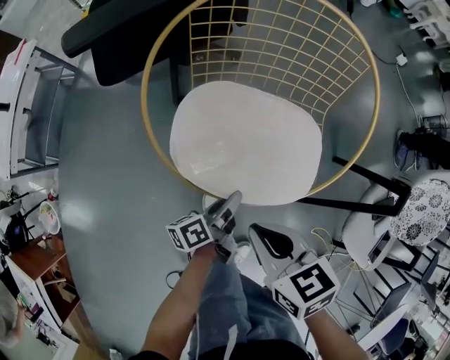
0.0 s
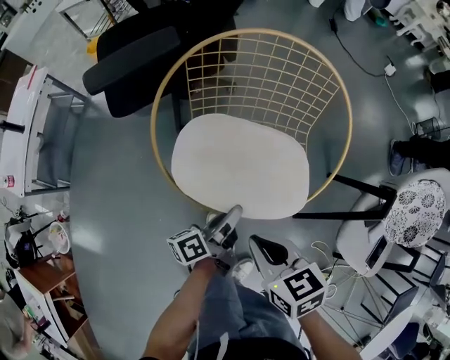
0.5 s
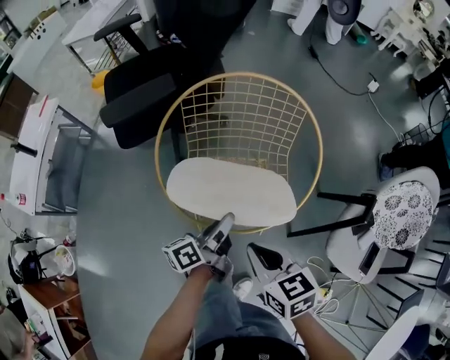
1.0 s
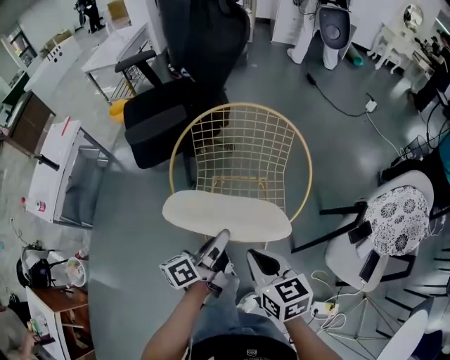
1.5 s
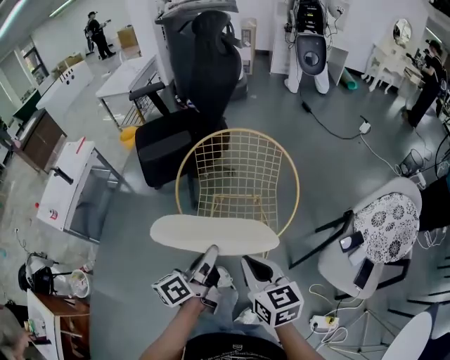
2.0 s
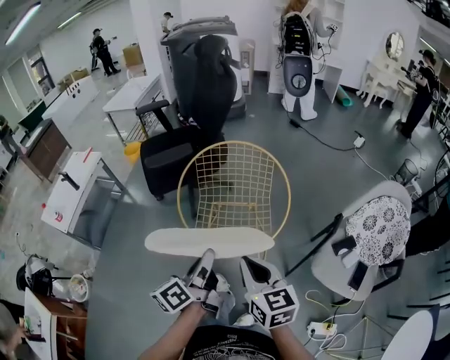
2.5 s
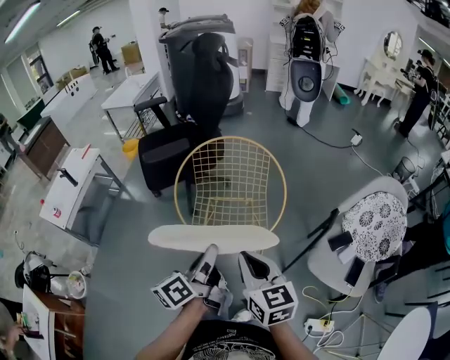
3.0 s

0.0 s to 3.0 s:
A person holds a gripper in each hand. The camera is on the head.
0.0 to 1.5 s: The right gripper moves upward, roughly 10 cm; the left gripper goes about 25 cm upward.
1.5 to 3.0 s: The grippers both shift upward and backward by approximately 15 cm.

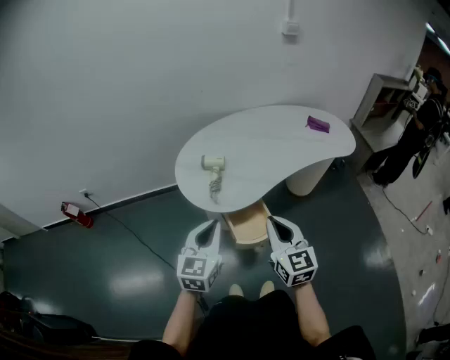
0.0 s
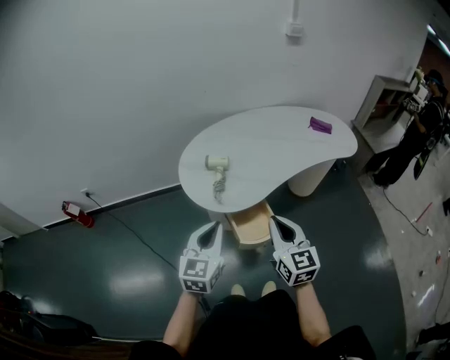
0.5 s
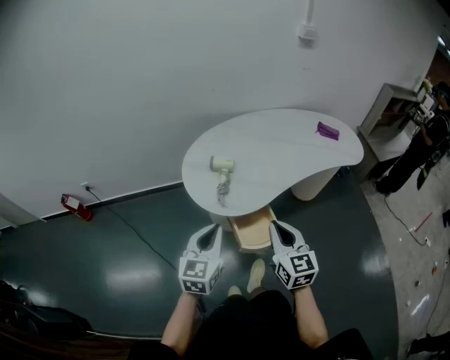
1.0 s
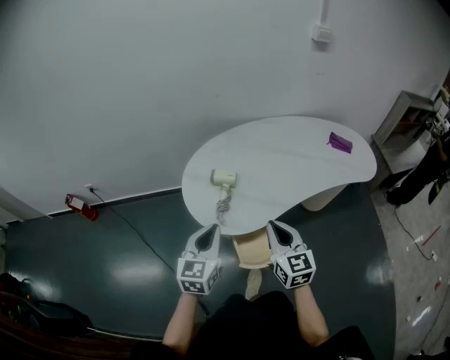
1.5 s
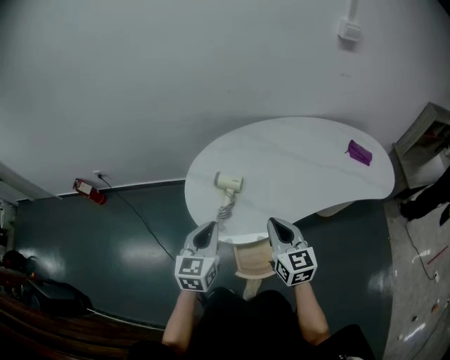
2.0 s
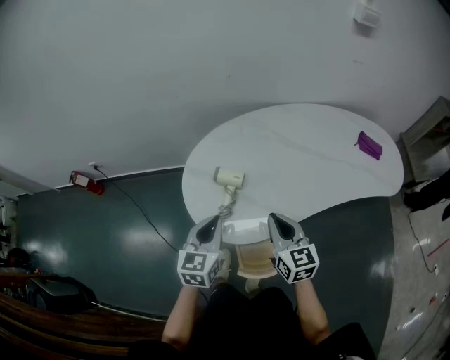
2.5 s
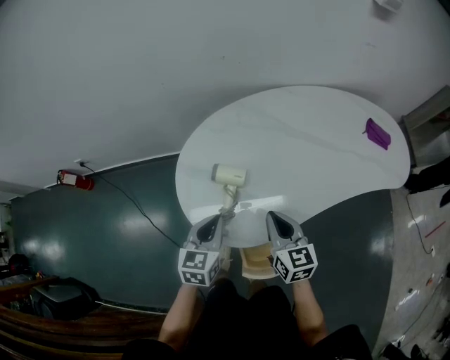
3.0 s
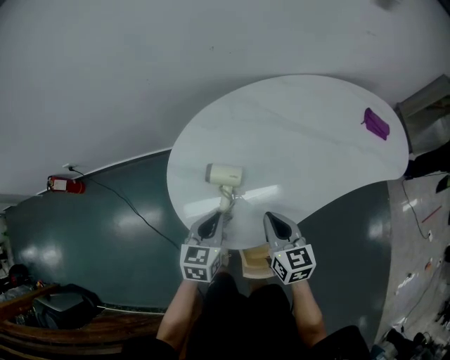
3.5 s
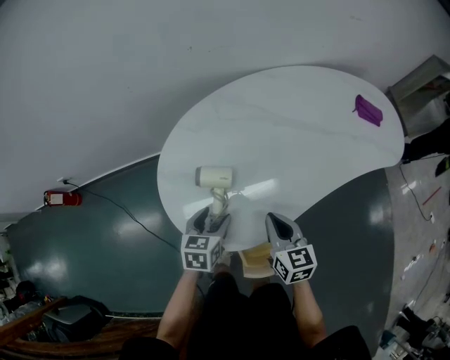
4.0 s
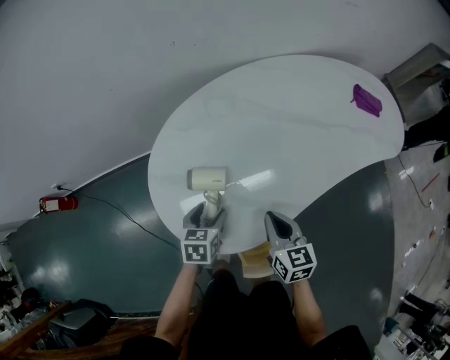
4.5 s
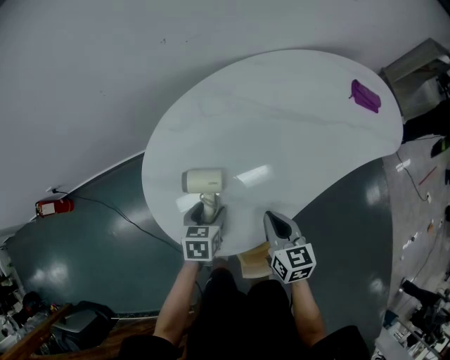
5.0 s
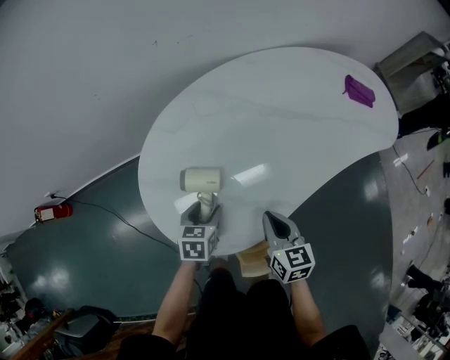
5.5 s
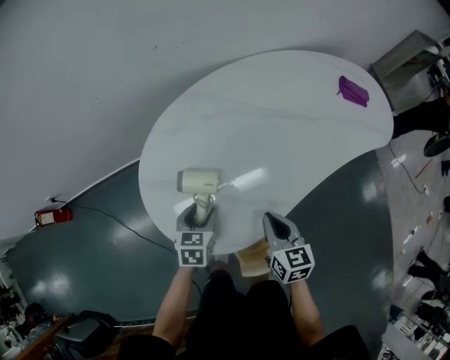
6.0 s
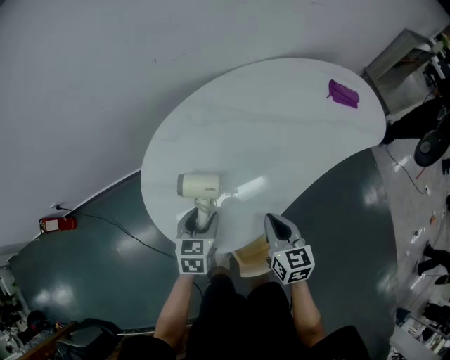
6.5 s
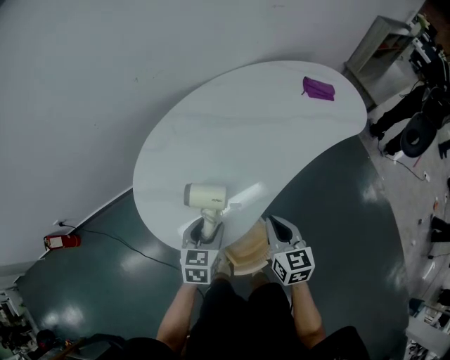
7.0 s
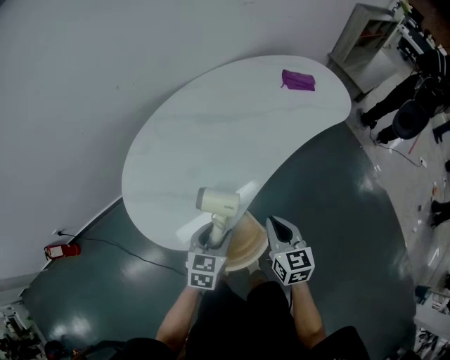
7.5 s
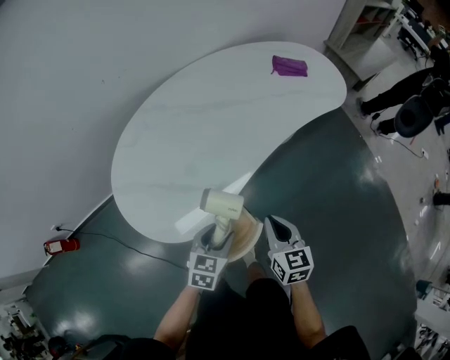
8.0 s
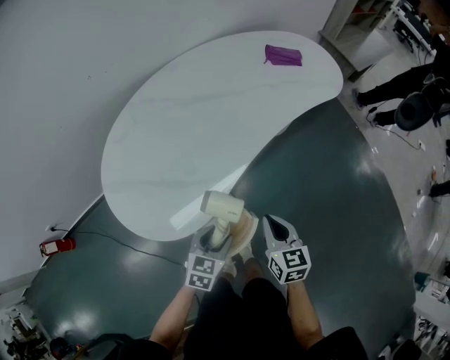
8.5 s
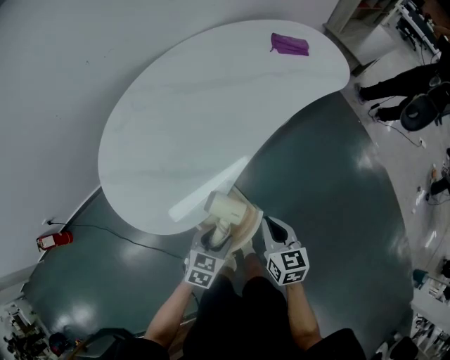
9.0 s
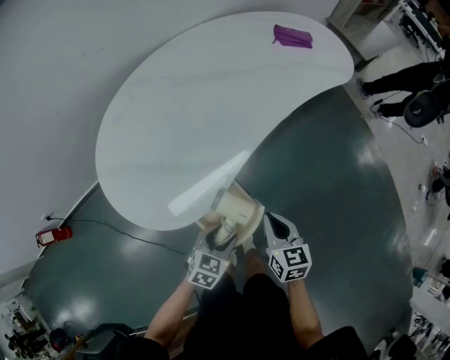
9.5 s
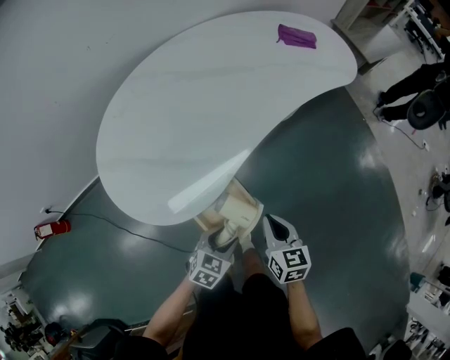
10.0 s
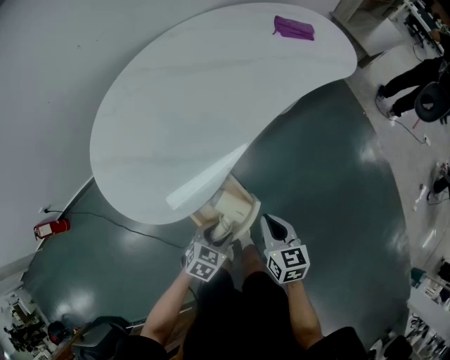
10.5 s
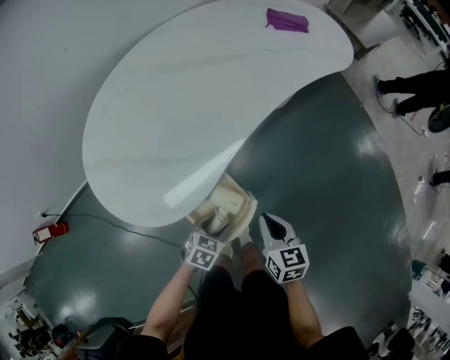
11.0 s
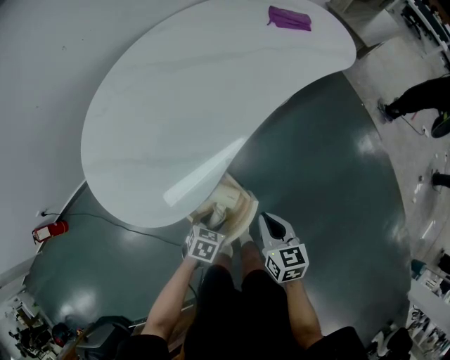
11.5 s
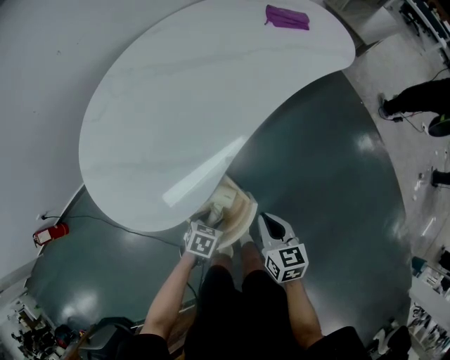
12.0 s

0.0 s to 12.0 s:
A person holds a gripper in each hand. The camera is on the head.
0.0 to 2.0 s: Both grippers move forward, roughly 20 cm.
2.0 to 4.0 s: The two grippers go roughly 20 cm downward and forward. The right gripper changes its angle by about 20 degrees, while the left gripper changes its angle by about 30 degrees, and opens.
4.0 to 6.0 s: The left gripper changes place by some 5 cm.
6.0 to 8.0 s: The two grippers go some 25 cm to the right and backward. The left gripper turns by approximately 20 degrees.
8.0 to 10.0 s: The two grippers go approximately 10 cm downward and backward.
10.0 to 12.0 s: The left gripper moves downward, approximately 10 cm, and changes its angle by about 20 degrees.

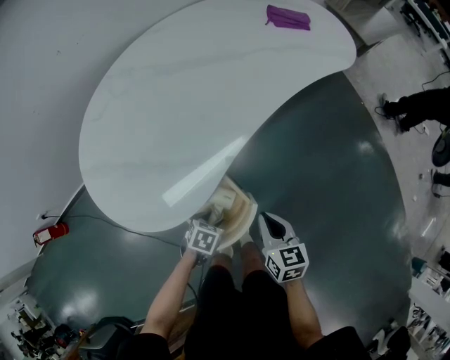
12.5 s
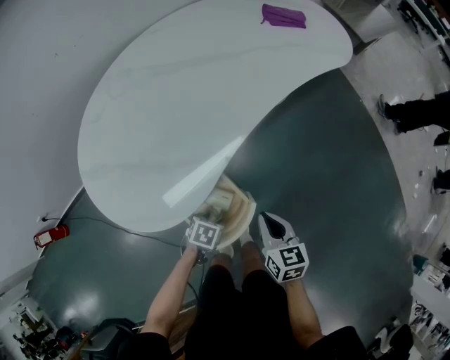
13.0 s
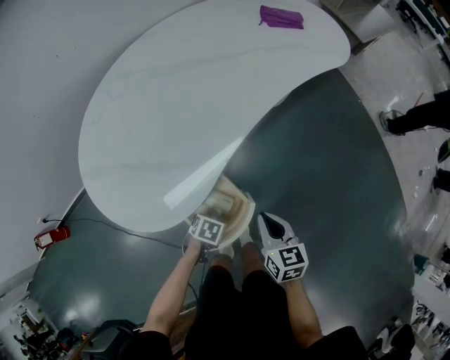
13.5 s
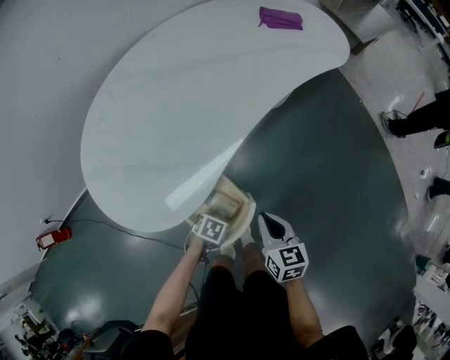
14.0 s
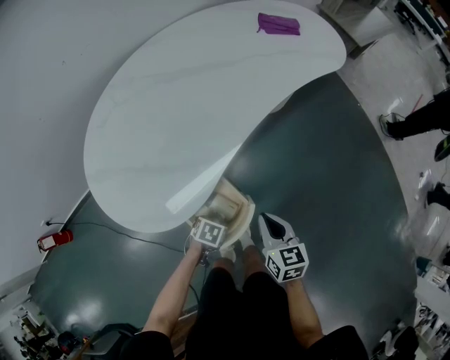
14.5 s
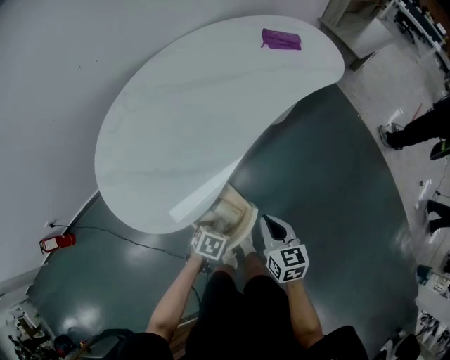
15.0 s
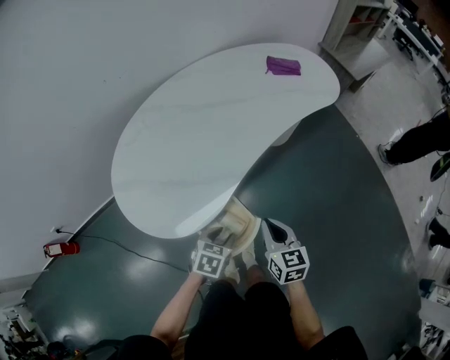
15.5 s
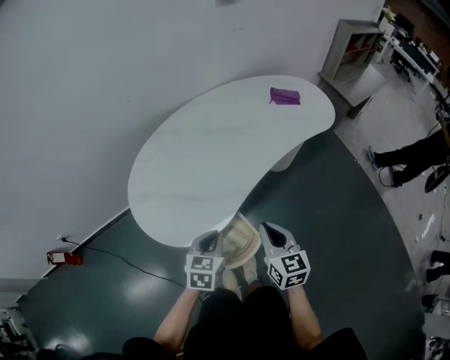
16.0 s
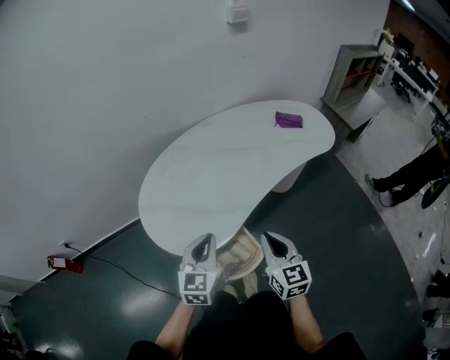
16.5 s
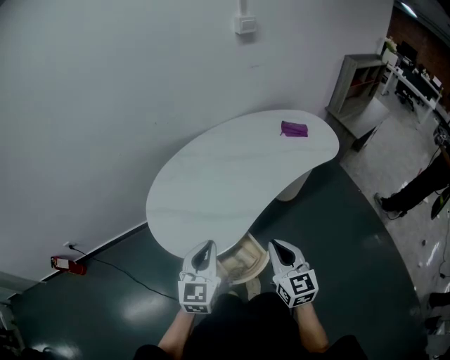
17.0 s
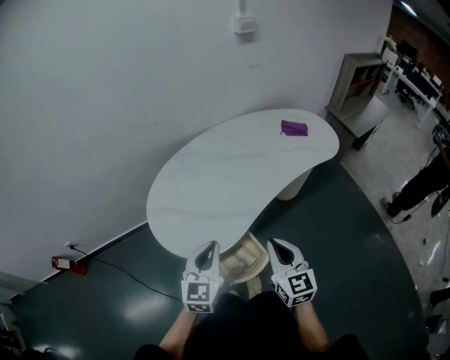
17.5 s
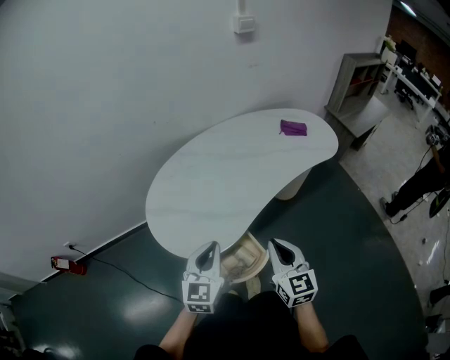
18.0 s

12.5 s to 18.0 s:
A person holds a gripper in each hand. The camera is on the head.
12.5 to 14.5 s: The grippers stay close to where they were, moving slightly.
14.5 to 16.0 s: The right gripper is displaced upward by some 20 cm. Meanwhile the left gripper travels upward by about 30 cm, angles its fingers upward, by approximately 30 degrees, and closes.
16.0 to 18.0 s: The right gripper is displaced upward by about 10 cm, while the left gripper is displaced upward by roughly 15 cm, and swivels roughly 30 degrees.

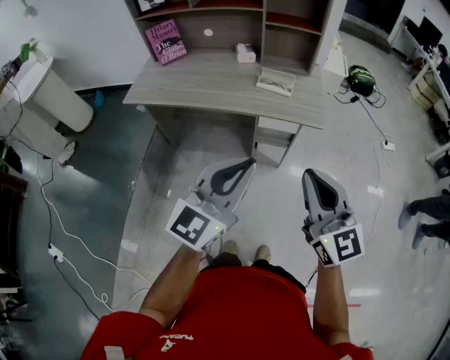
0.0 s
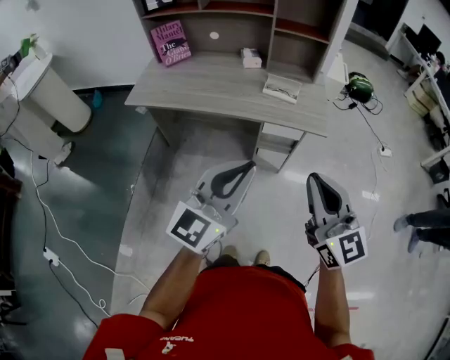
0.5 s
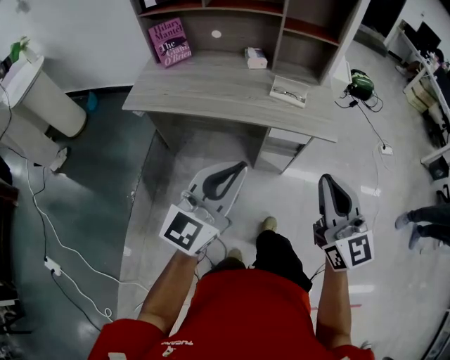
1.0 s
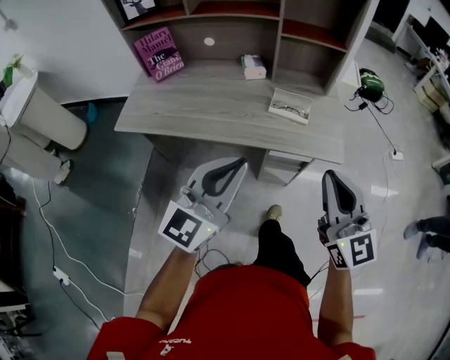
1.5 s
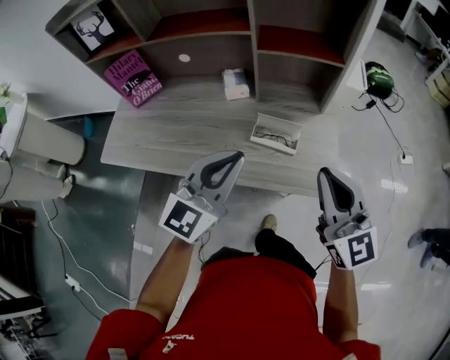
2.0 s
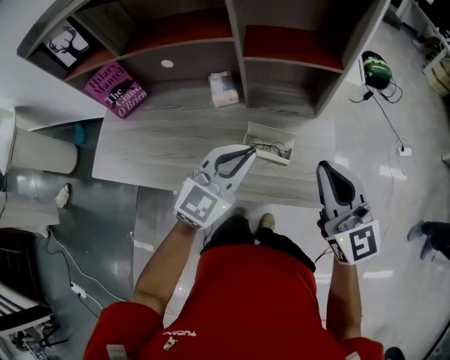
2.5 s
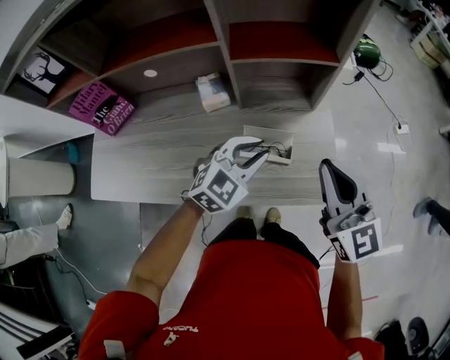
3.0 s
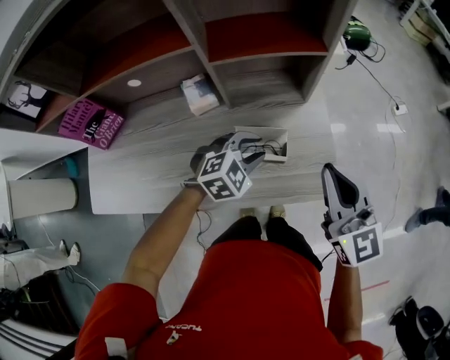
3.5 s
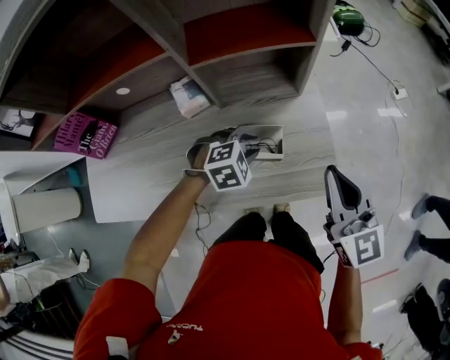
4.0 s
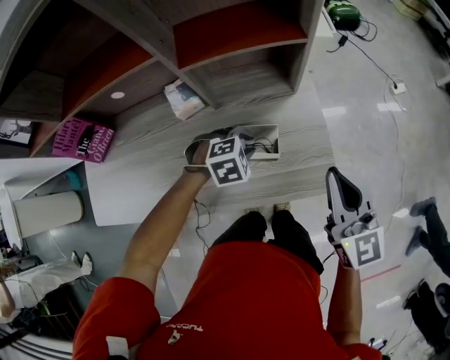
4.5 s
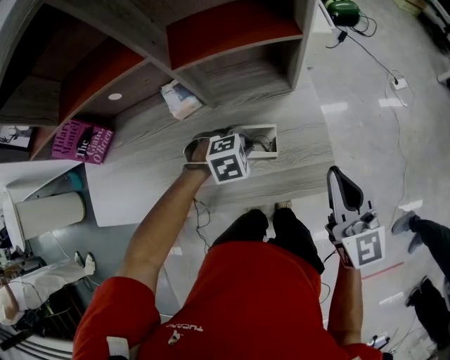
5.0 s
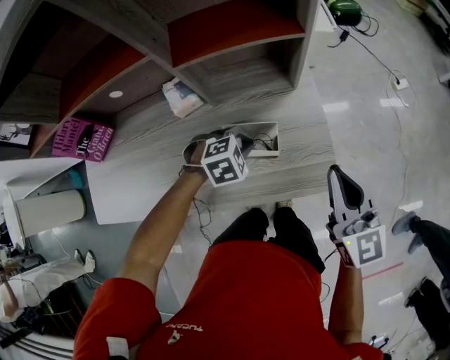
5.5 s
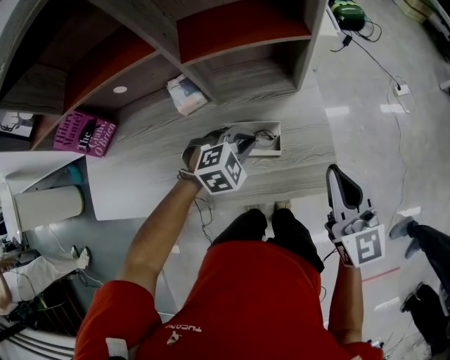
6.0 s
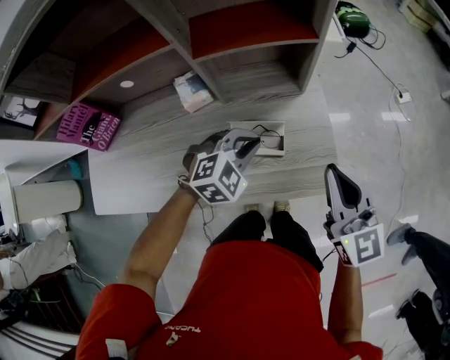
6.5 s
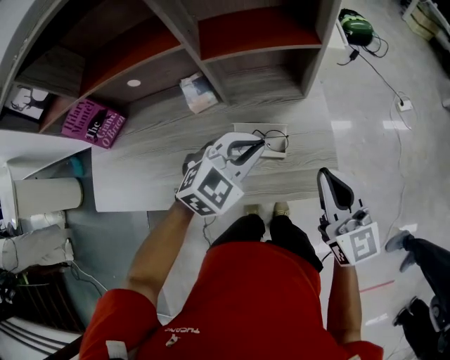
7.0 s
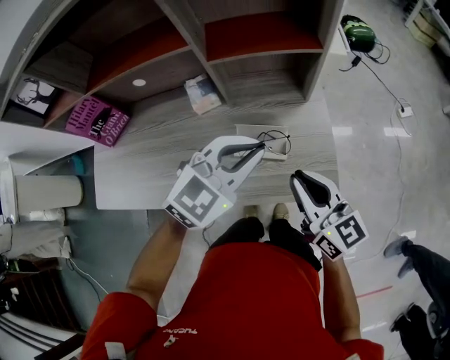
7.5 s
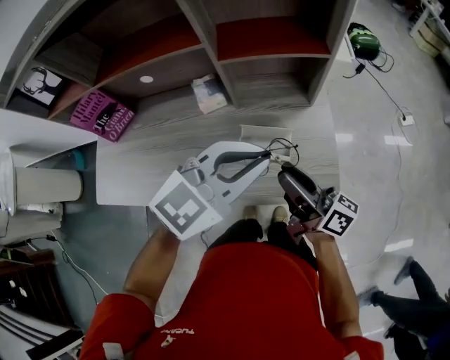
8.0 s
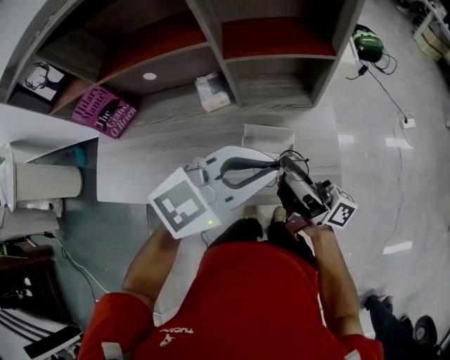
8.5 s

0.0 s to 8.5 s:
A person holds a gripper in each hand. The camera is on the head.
0.0 to 2.0 s: Both grippers move forward, approximately 35 cm.
2.0 to 4.0 s: The left gripper is displaced downward by about 25 cm, tips its fingers downward by about 60 degrees, and opens up, while the right gripper changes place by some 15 cm, and swivels roughly 20 degrees.
4.0 to 6.5 s: The left gripper goes about 5 cm upward, and closes.
6.5 to 8.5 s: The right gripper heads to the left, covering roughly 10 cm, twists roughly 70 degrees clockwise, seen from behind, and opens. The left gripper moves upward, roughly 20 cm, and points its fingers about 30 degrees further upward.
